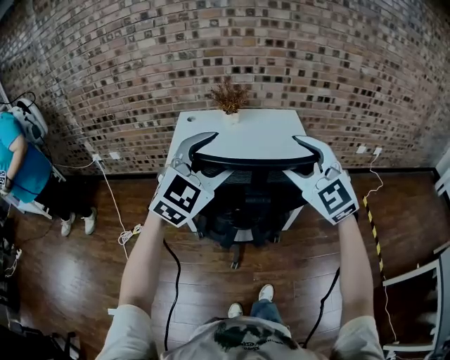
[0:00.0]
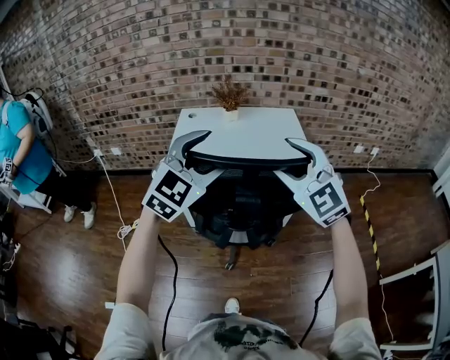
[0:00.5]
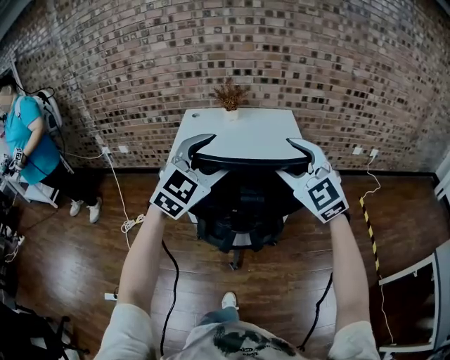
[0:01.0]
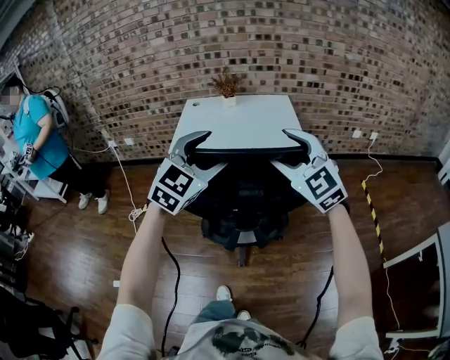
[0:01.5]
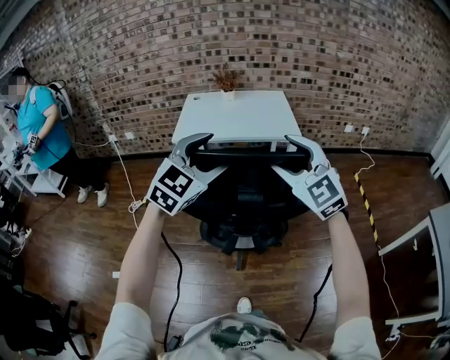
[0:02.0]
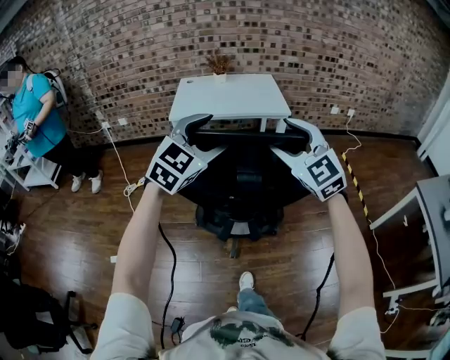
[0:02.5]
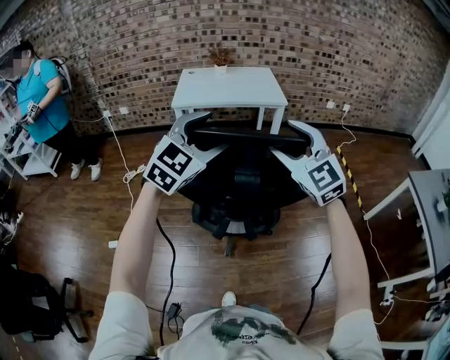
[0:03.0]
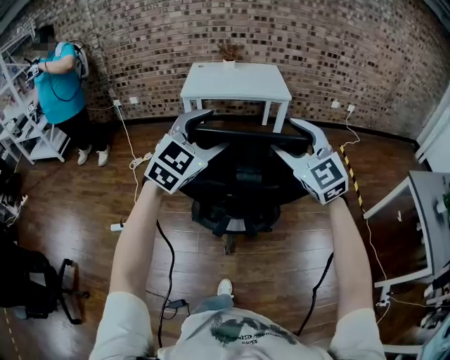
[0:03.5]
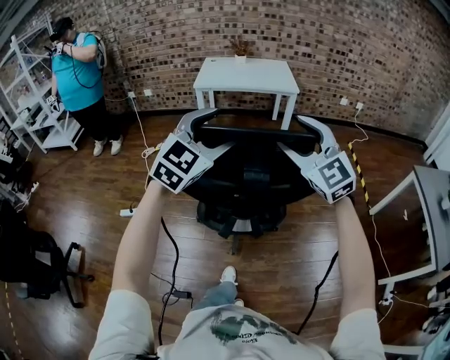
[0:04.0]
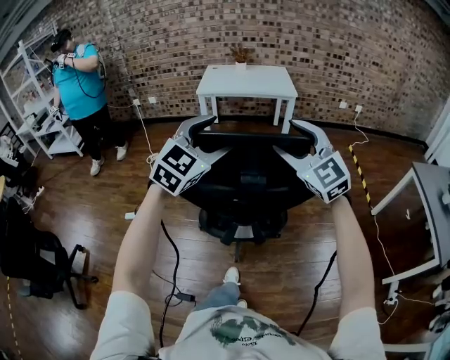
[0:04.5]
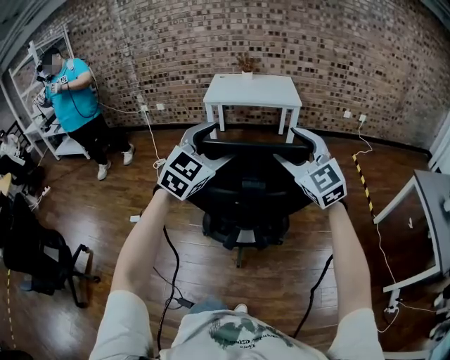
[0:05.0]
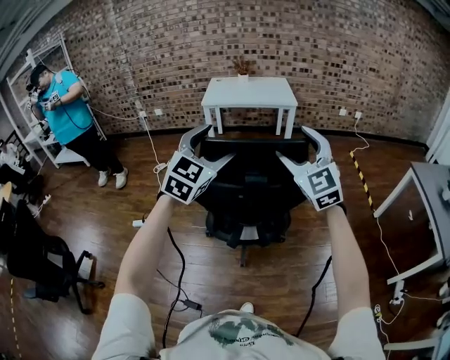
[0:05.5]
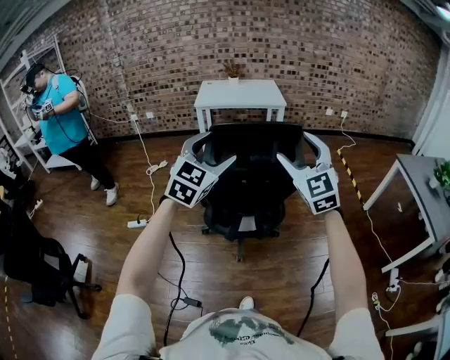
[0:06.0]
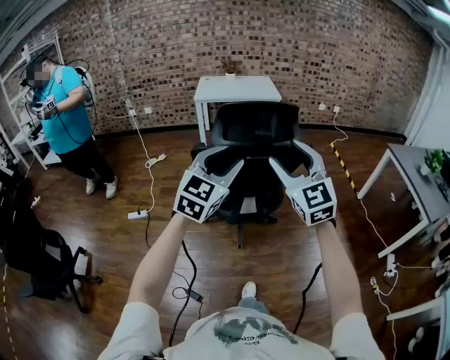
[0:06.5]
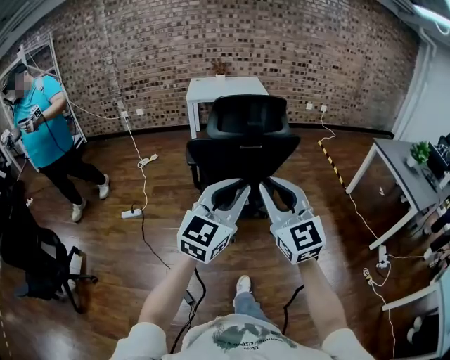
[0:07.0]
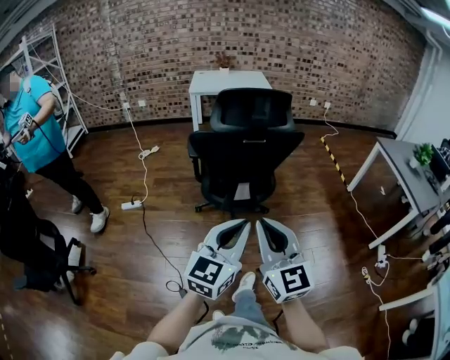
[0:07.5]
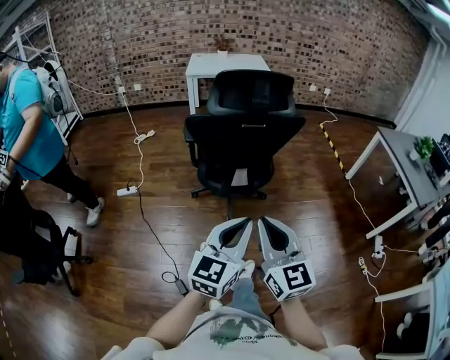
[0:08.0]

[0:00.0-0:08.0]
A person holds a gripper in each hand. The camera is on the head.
0:00.0 to 0:02.0: Both grippers travel together backward, approximately 30 cm.
0:02.0 to 0:04.0: Both grippers travel together backward, about 40 cm.
0:04.0 to 0:06.0: The grippers both shift backward by roughly 15 cm.
0:06.0 to 0:08.0: Both grippers move backward, about 35 cm. The left gripper rotates approximately 30 degrees, and closes. The right gripper turns by roughly 30 degrees, and closes.

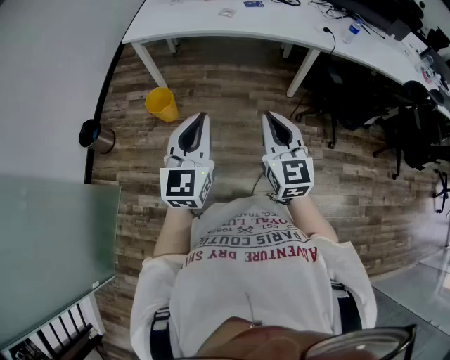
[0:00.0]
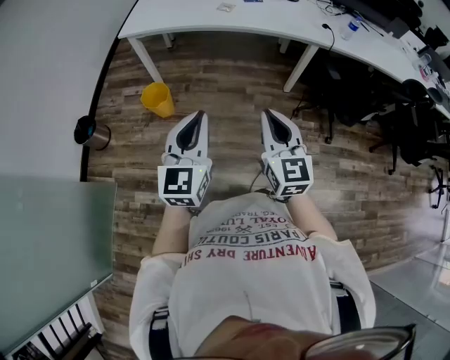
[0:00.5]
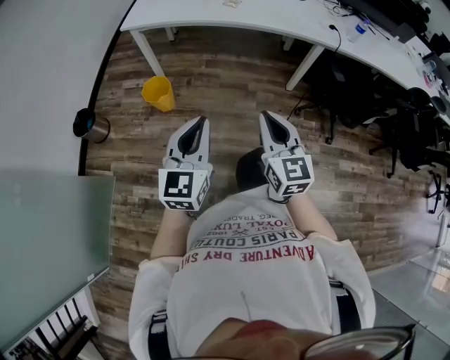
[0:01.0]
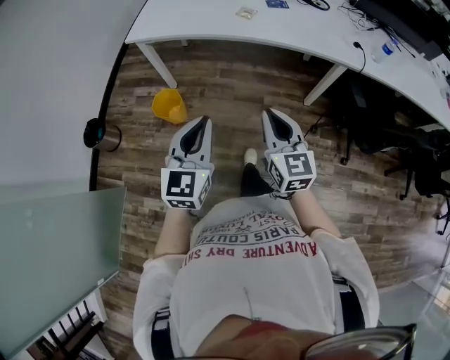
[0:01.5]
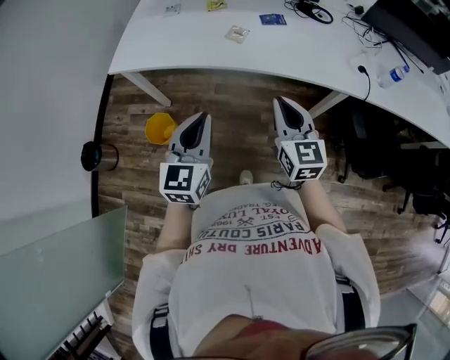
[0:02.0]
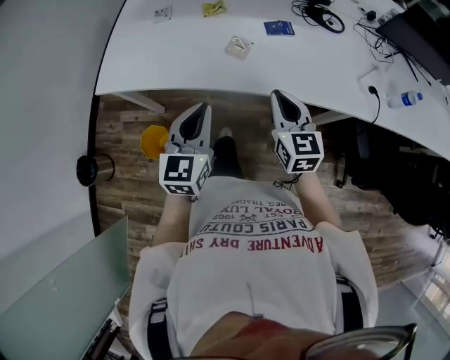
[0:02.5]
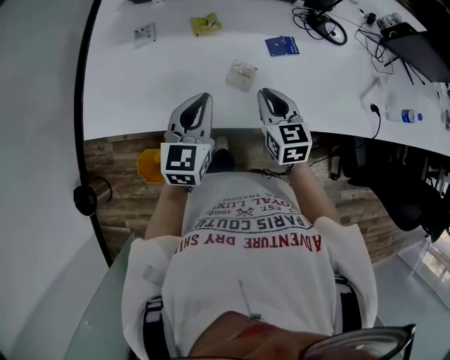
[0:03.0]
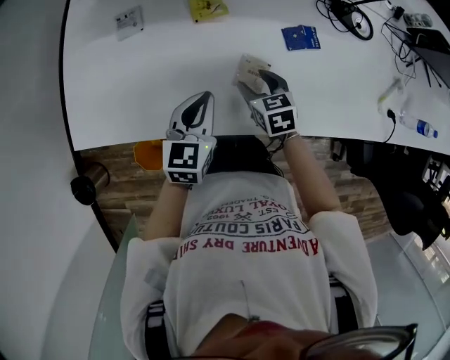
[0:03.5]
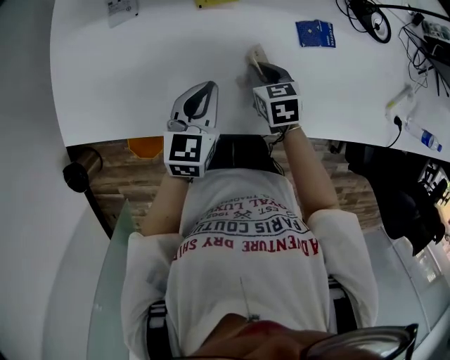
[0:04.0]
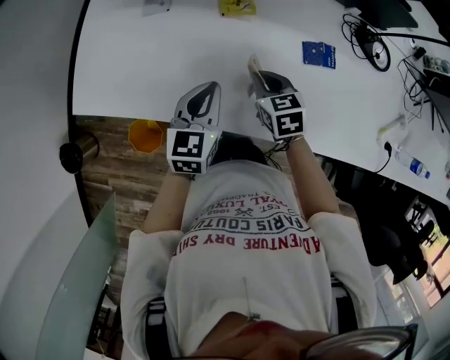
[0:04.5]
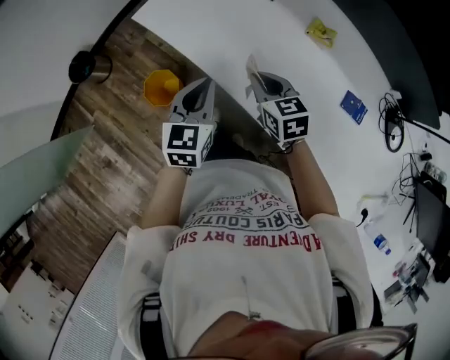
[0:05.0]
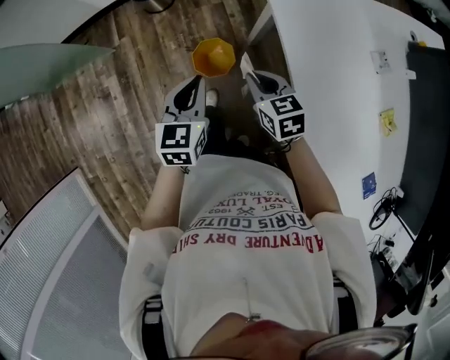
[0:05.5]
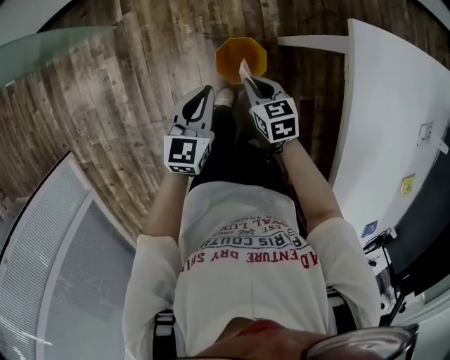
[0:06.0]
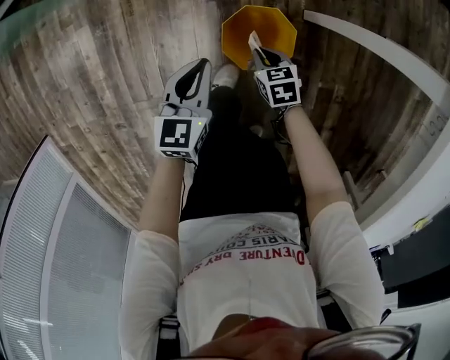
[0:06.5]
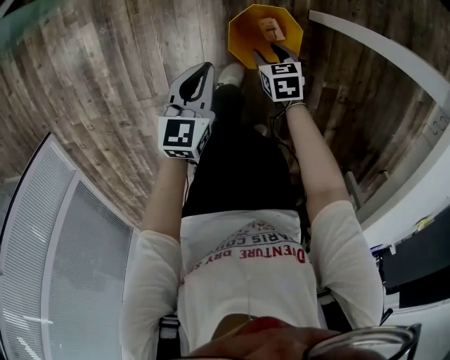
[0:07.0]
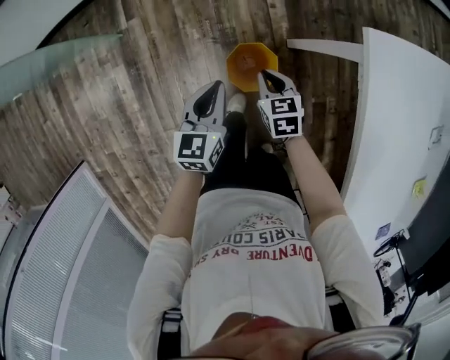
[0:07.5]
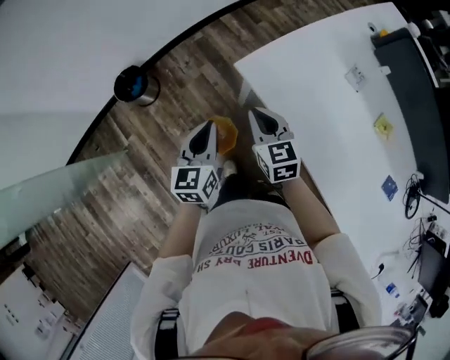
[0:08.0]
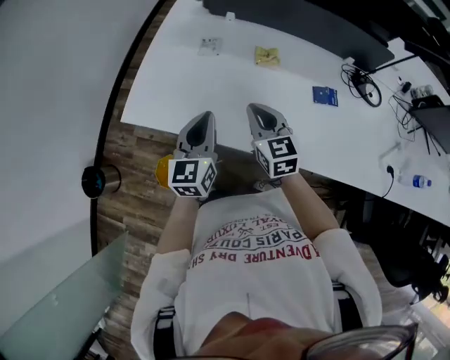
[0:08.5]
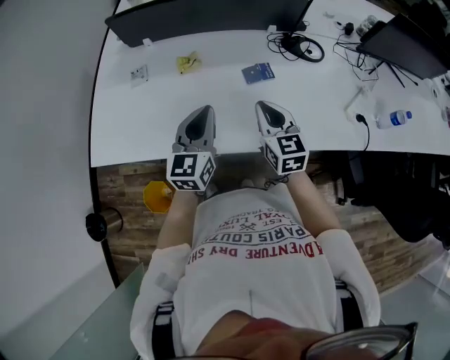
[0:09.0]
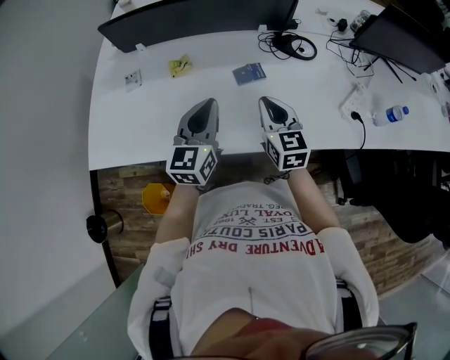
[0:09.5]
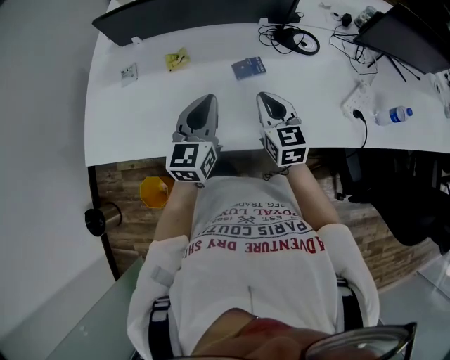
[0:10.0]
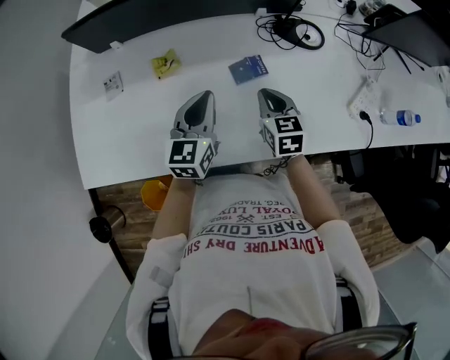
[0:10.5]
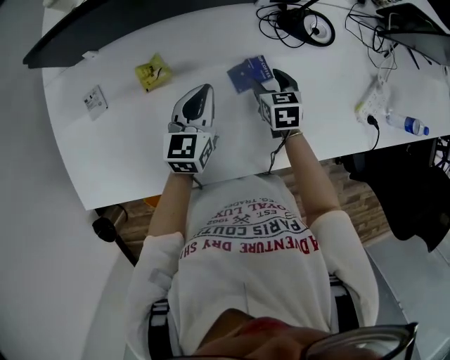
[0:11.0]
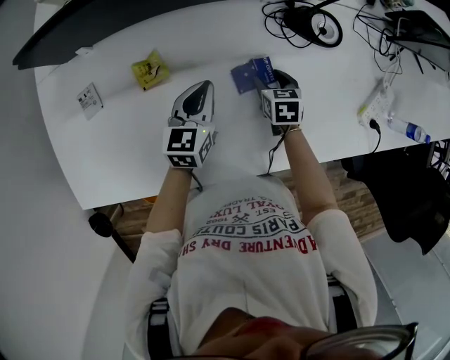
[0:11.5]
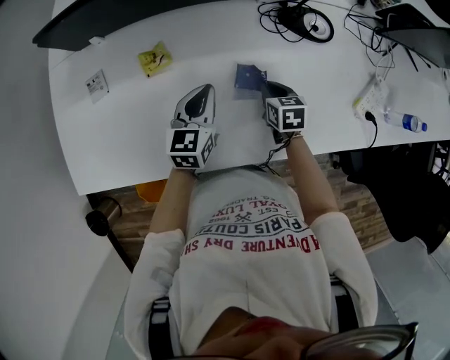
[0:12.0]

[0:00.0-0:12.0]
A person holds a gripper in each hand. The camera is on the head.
0:00.0 to 0:02.0: The two grippers travel together, forward, roughly 40 cm.
0:02.0 to 0:04.0: The pair of grippers is taken forward, some 50 cm. The grippers both shift downward by approximately 25 cm. The left gripper swivels about 30 degrees. Meanwhile the right gripper tilts its fingers roughly 50 degrees downward, and opens, then closes again.
0:04.0 to 0:06.0: The two grippers travel together, some 60 cm. The right gripper rotates some 80 degrees, while the left gripper rotates about 80 degrees.
0:06.0 to 0:08.0: The grippers both shift upward by roughly 25 cm. The left gripper turns by some 20 degrees. Meanwhile the right gripper turns by approximately 40 degrees, and opens, then closes once more.
0:08.0 to 0:10.0: The pair of grippers is taken approximately 70 cm. The right gripper swivels roughly 60 degrees. Meanwhile the left gripper swivels approximately 60 degrees.
0:10.0 to 0:12.0: The left gripper goes about 20 cm forward and downward. The right gripper goes some 25 cm downward and forward, angles its fingers downward, by approximately 30 degrees, and opens and closes again.

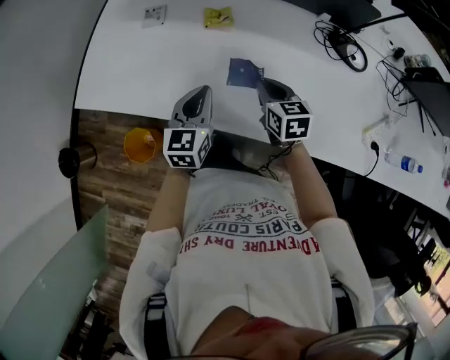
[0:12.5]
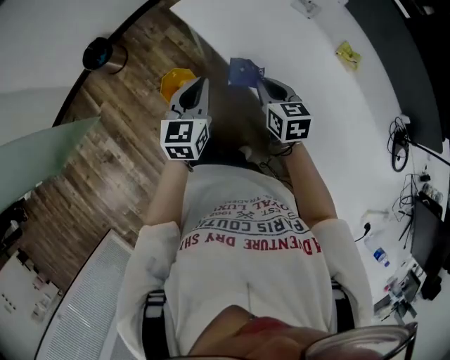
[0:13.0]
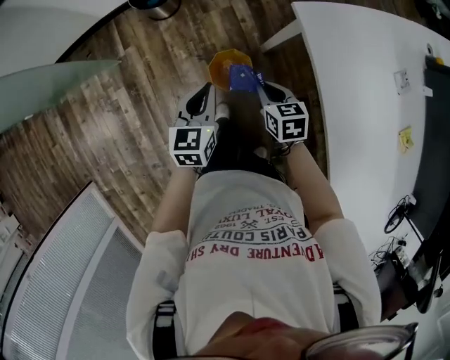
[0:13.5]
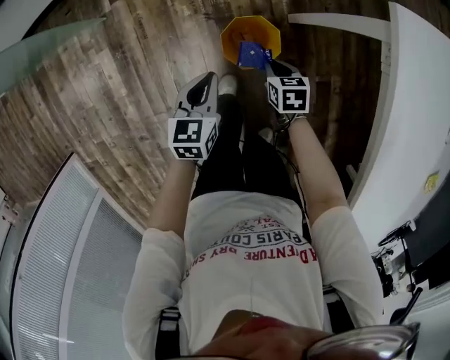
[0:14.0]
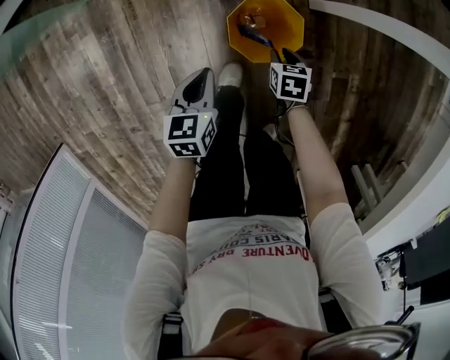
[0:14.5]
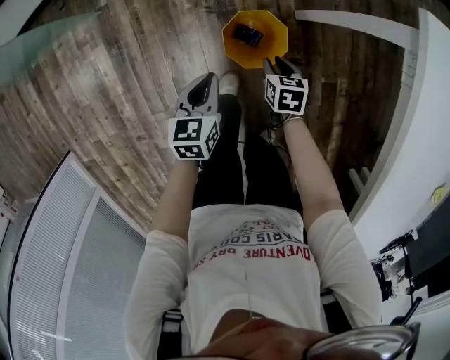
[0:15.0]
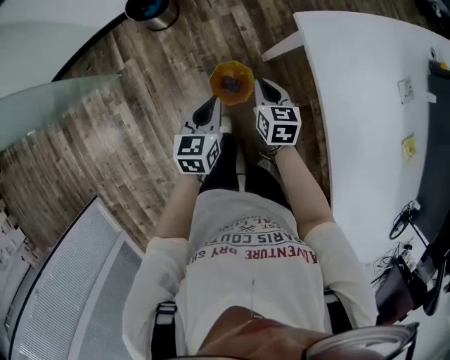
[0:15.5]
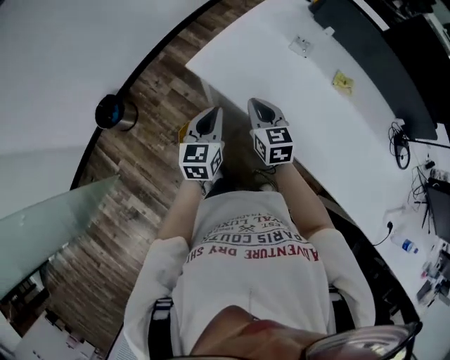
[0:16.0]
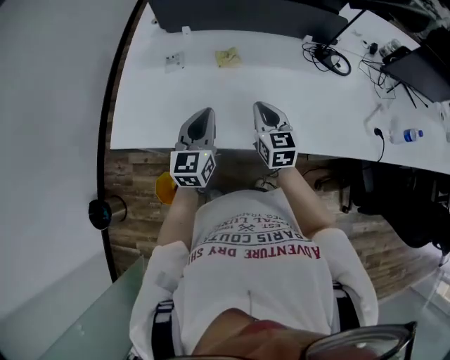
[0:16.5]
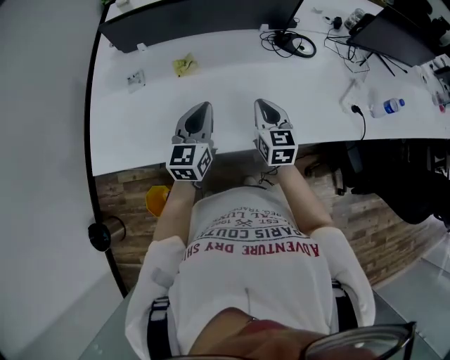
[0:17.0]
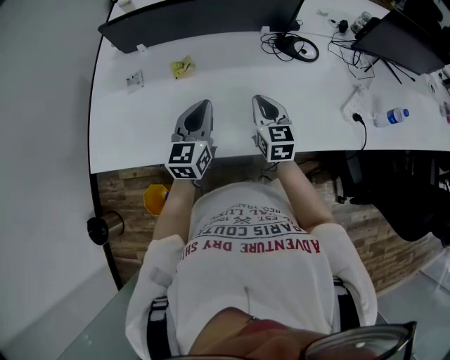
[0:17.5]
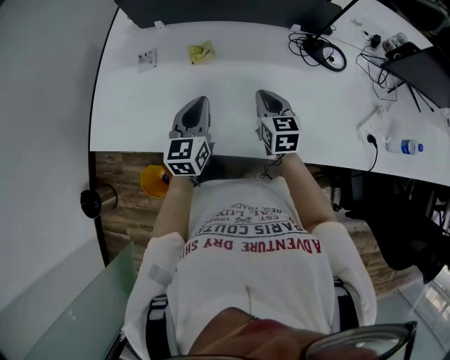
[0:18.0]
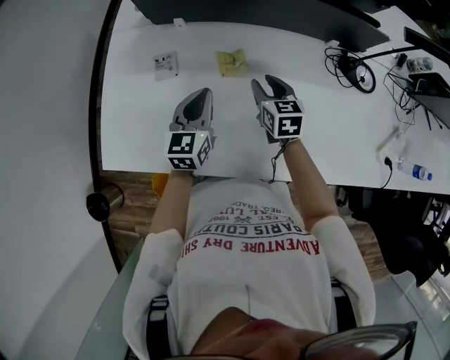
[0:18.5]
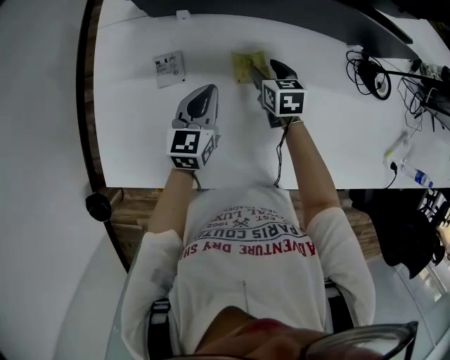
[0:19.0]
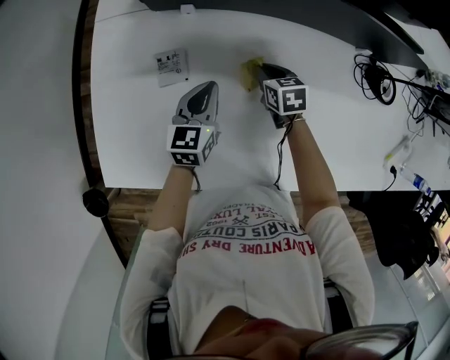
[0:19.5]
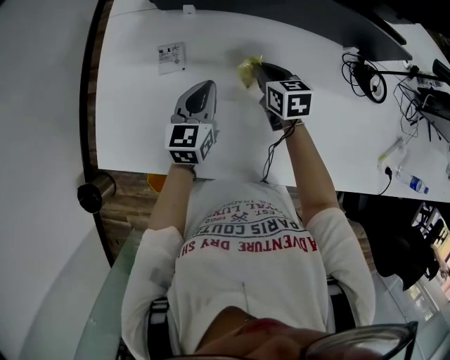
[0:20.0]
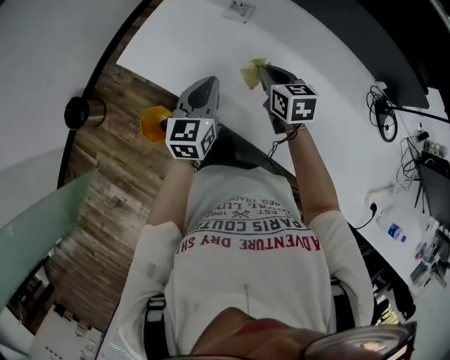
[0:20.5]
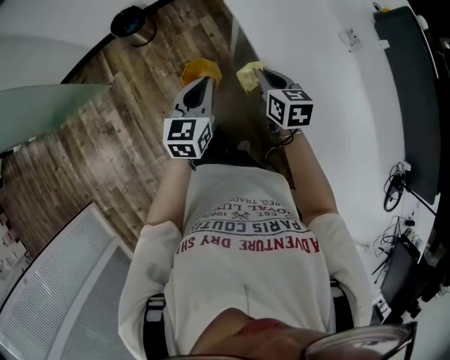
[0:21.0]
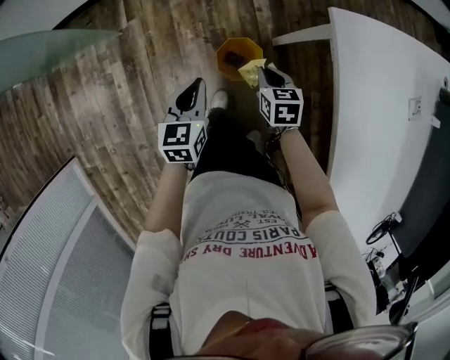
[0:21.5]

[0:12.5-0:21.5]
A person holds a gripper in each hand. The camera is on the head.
0:12.5 to 0:14.5: The pair of grippers is taken roughly 60 cm. The right gripper points its fingers about 30 degrees further downward; the left gripper rotates about 80 degrees.
0:14.5 to 0:17.0: The two grippers travel together, approximately 60 cm. The right gripper shifts about 70 cm upward, and angles its fingers upward, by roughly 50 degrees. Meanwhile the left gripper tilts its fingers some 40 degrees upward.
0:17.0 to 0:19.5: The grippers both shift forward, to the left and downward by about 40 cm. The left gripper changes its angle by some 20 degrees. The right gripper angles its fingers downward, by approximately 30 degrees, and opens, then closes again.
0:19.5 to 0:21.5: The pair of grippers is taken roughly 70 cm. The right gripper turns by about 70 degrees, while the left gripper swivels some 80 degrees.
